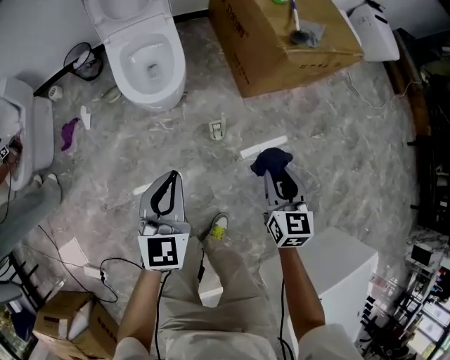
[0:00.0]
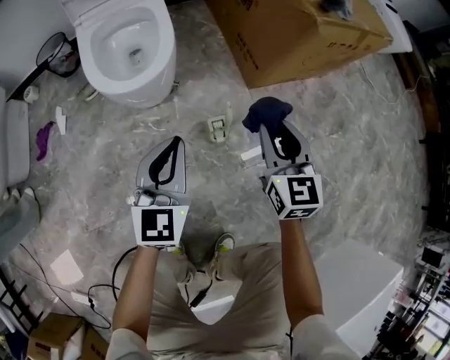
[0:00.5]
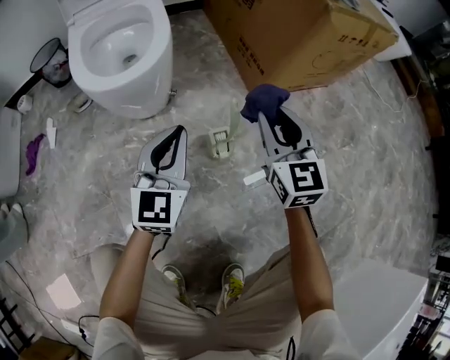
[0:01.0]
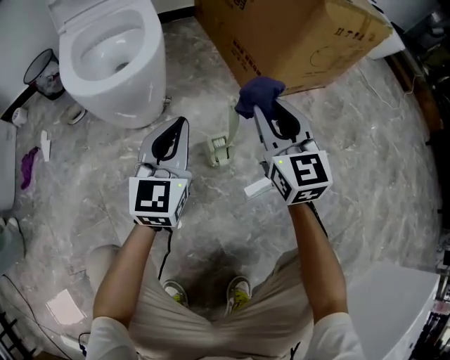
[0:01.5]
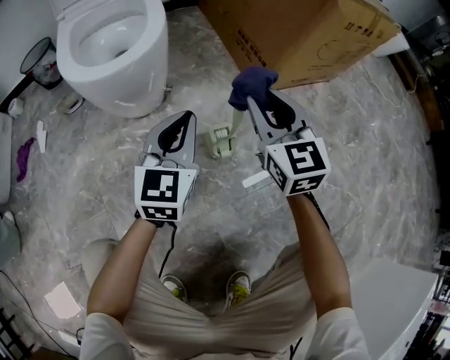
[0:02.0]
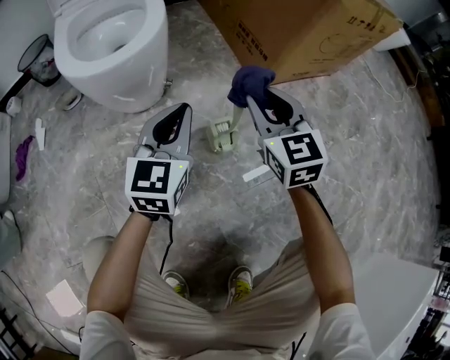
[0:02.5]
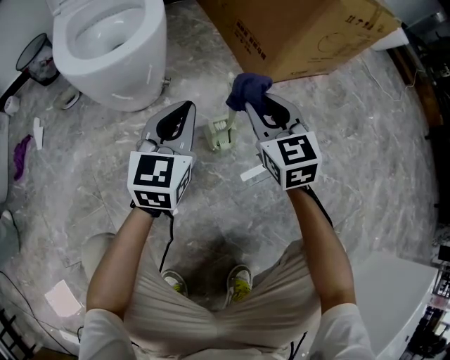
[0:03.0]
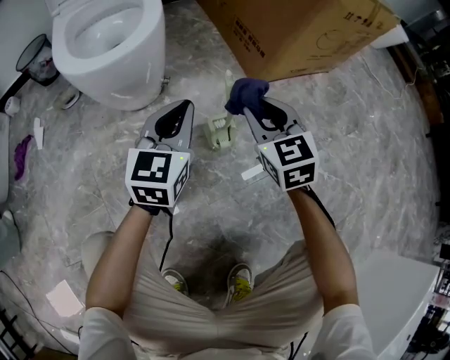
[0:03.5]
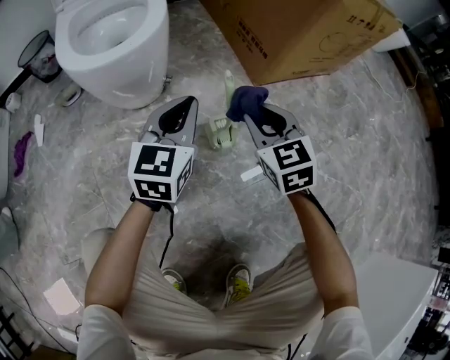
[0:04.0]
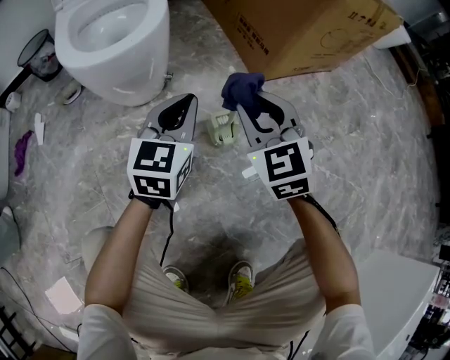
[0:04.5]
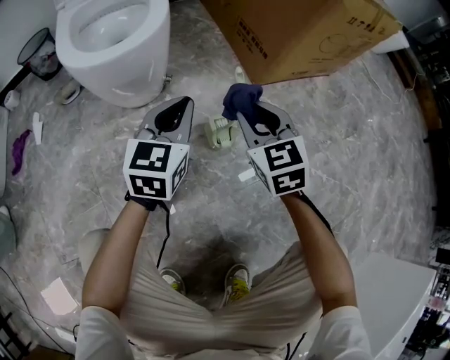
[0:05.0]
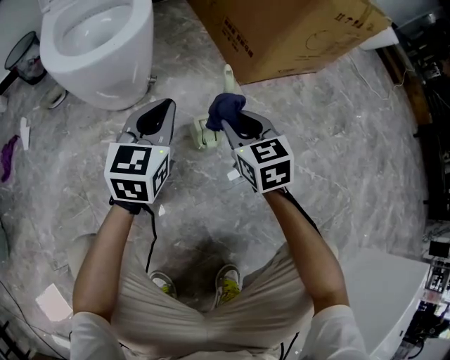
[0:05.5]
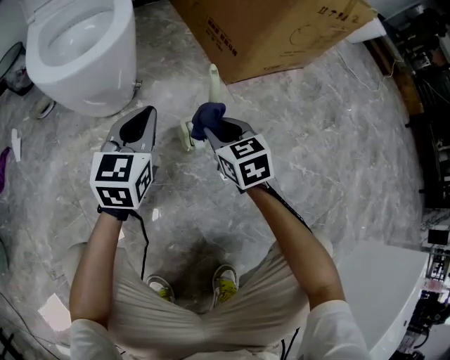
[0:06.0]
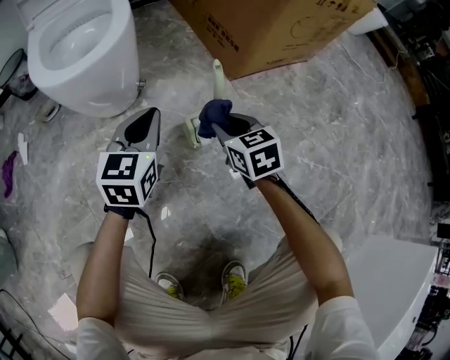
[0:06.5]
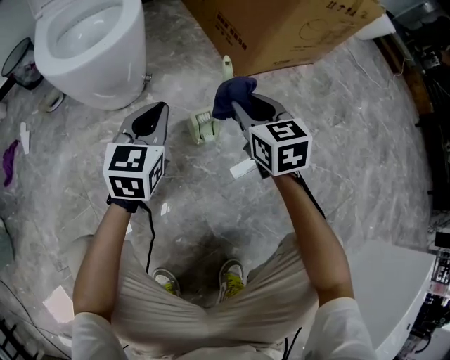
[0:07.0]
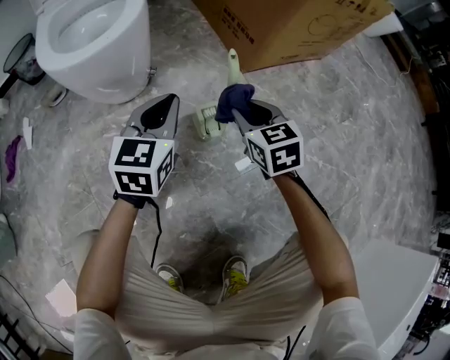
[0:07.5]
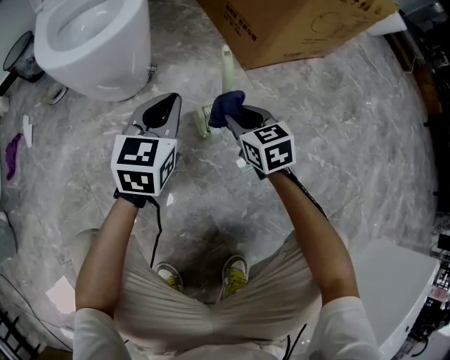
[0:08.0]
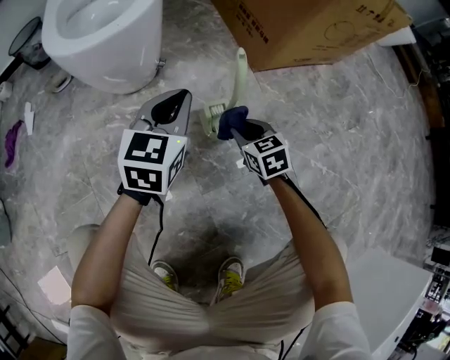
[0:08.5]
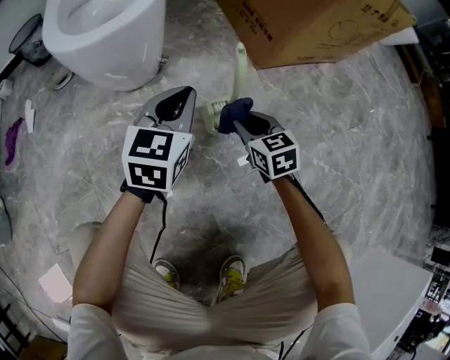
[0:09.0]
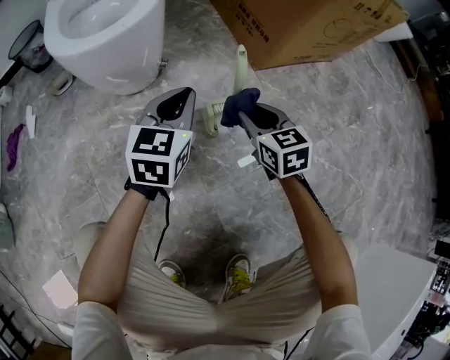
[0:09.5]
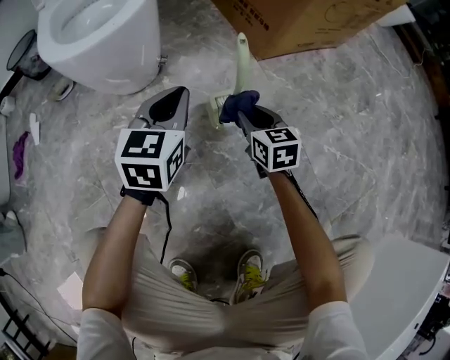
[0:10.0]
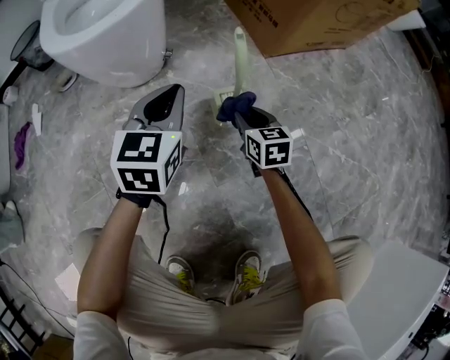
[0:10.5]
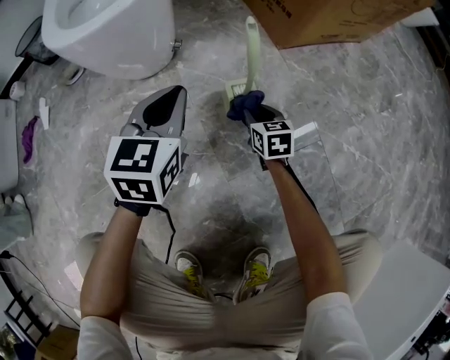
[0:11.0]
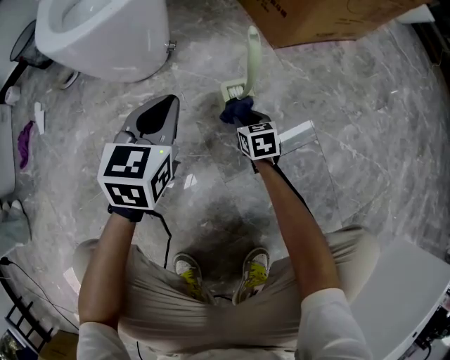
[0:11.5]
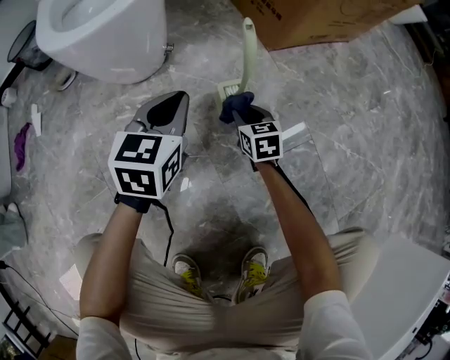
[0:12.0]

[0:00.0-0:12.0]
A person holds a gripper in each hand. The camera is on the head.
0:00.0 to 0:02.0: The right gripper shifts some 35 cm downward and forward, and changes its angle by roughly 20 degrees. Meanwhile the left gripper shifts about 40 cm downward.
0:02.0 to 0:04.0: The right gripper moves downward, some 10 cm.
0:04.0 to 0:06.0: The right gripper moves downward, about 5 cm.
0:06.0 to 0:08.0: The right gripper goes upward and returns, about 5 cm each way.
0:08.0 to 0:10.0: The right gripper moves up and down over about 10 cm, changing direction 2 times.
0:10.0 to 0:12.0: The right gripper moves downward, roughly 10 cm.

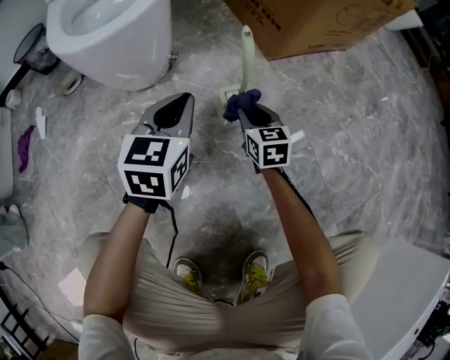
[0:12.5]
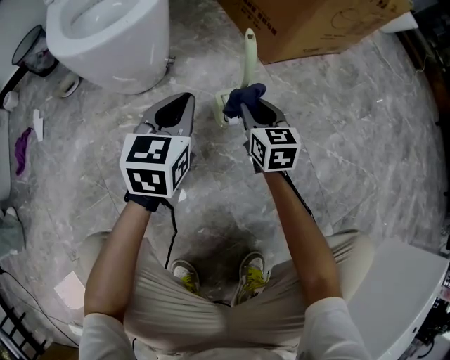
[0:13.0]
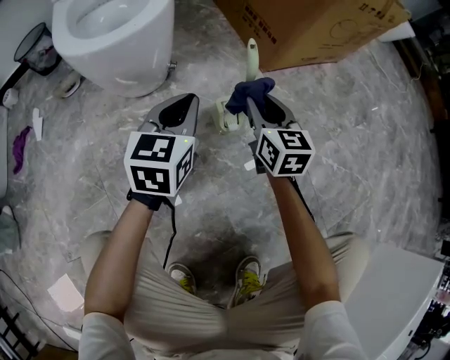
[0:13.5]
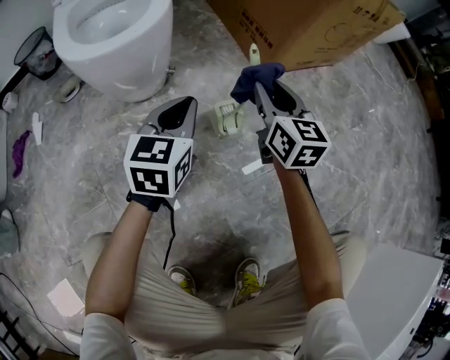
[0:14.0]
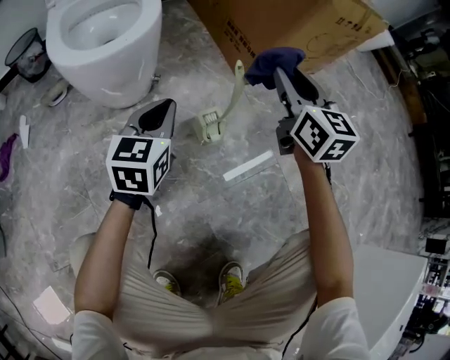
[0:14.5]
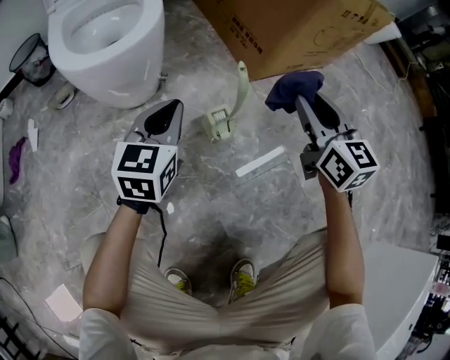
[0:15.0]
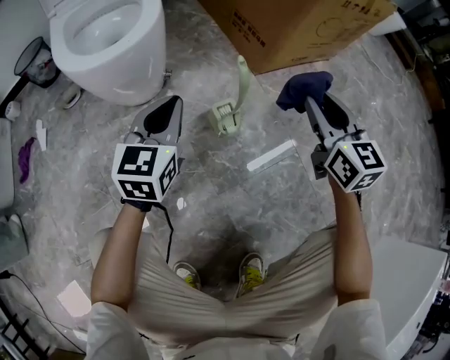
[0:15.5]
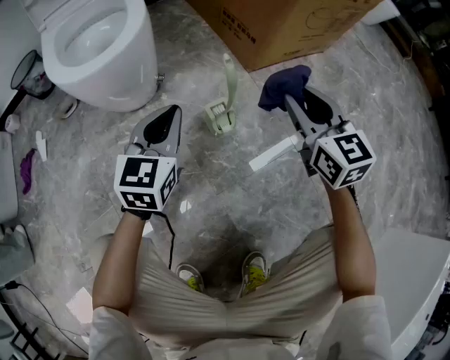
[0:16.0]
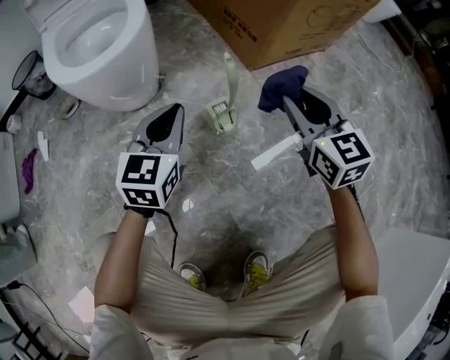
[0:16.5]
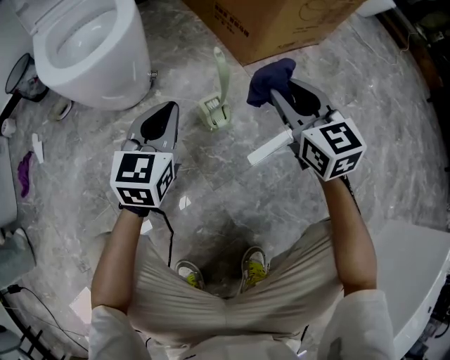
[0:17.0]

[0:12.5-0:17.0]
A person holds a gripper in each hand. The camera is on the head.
0:12.5 to 0:14.5: The right gripper travels upward by roughly 30 cm, and swivels about 20 degrees.
0:14.5 to 0:17.0: The right gripper travels backward by approximately 5 cm.

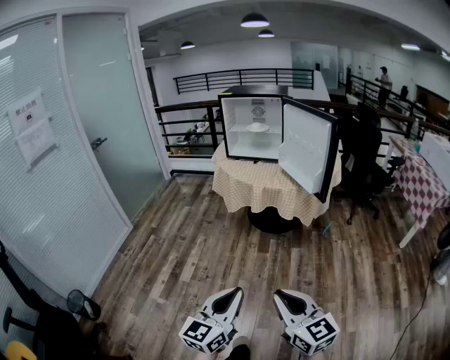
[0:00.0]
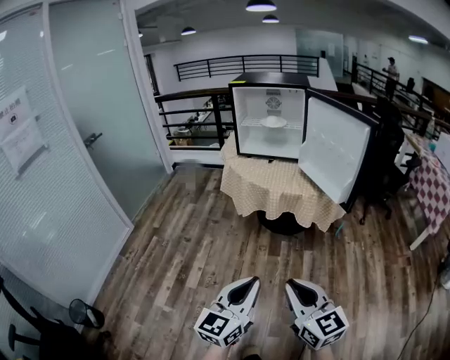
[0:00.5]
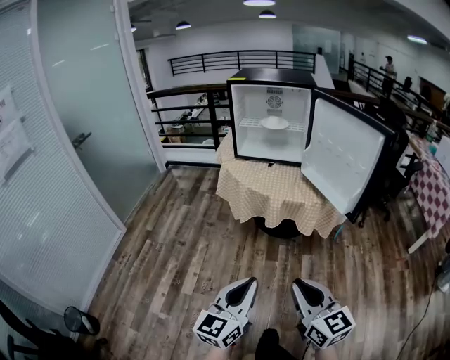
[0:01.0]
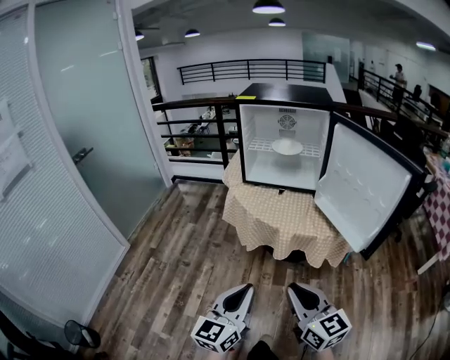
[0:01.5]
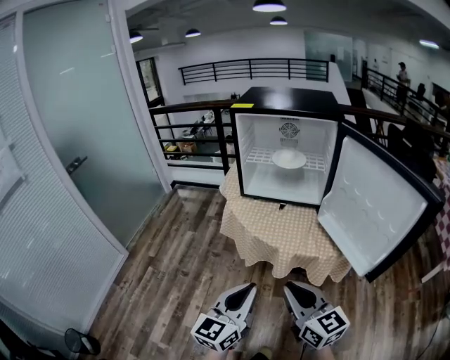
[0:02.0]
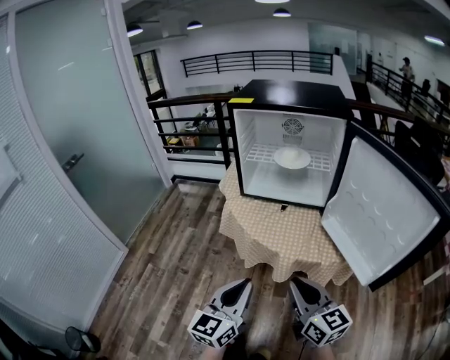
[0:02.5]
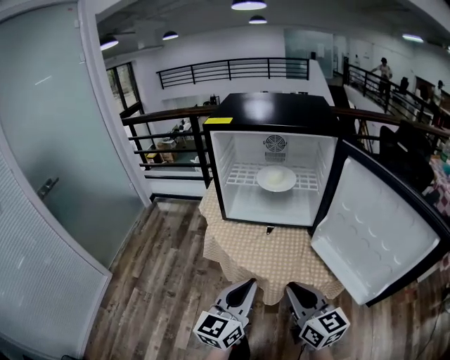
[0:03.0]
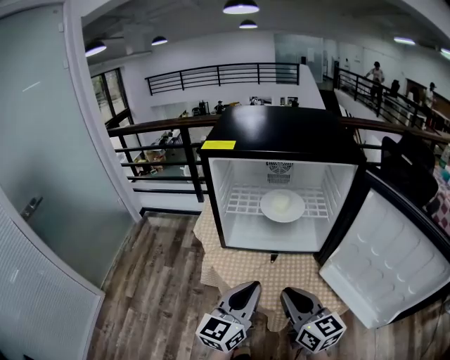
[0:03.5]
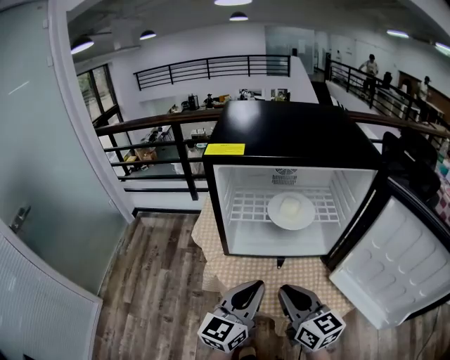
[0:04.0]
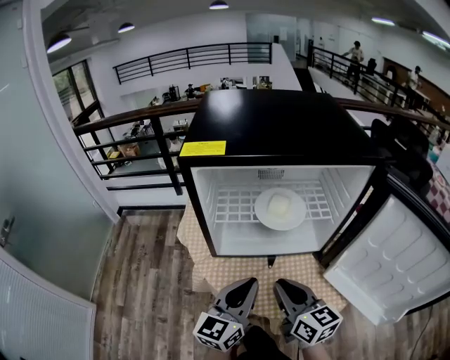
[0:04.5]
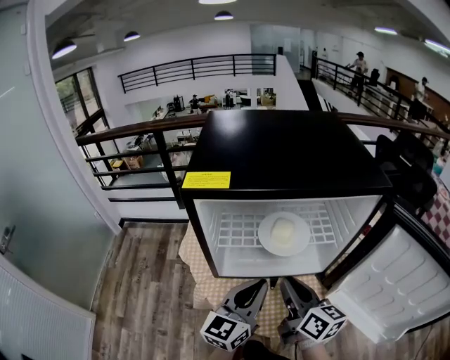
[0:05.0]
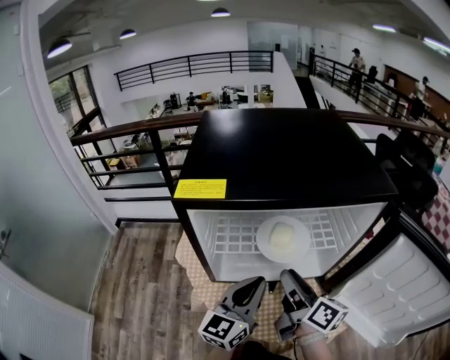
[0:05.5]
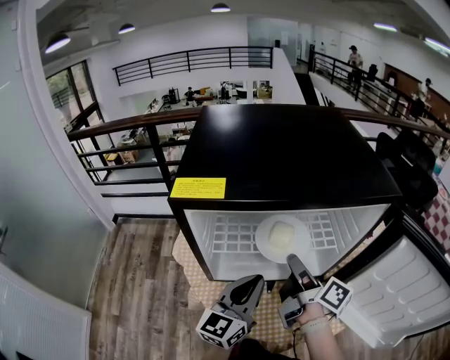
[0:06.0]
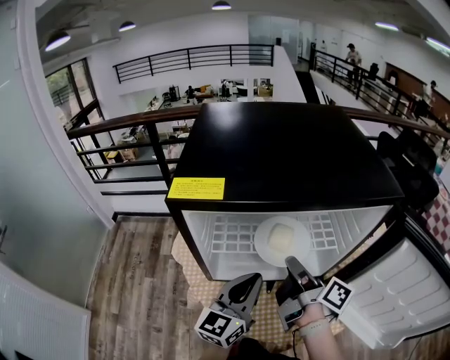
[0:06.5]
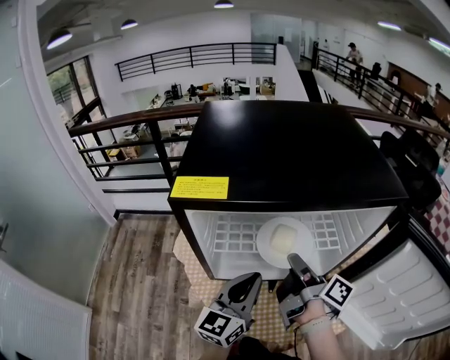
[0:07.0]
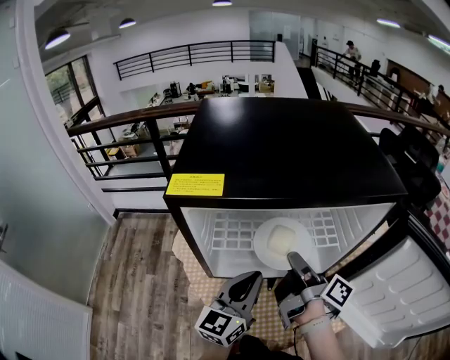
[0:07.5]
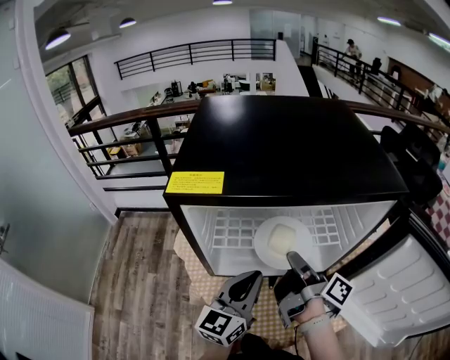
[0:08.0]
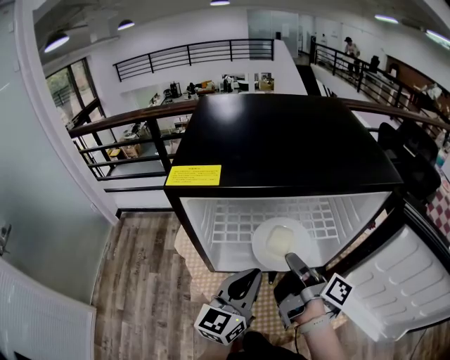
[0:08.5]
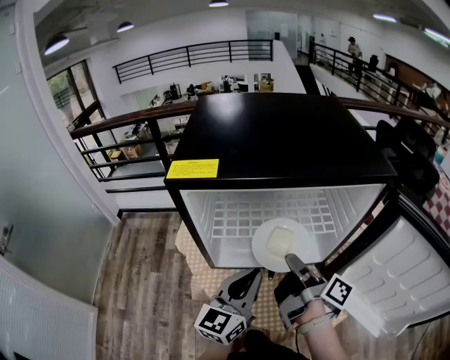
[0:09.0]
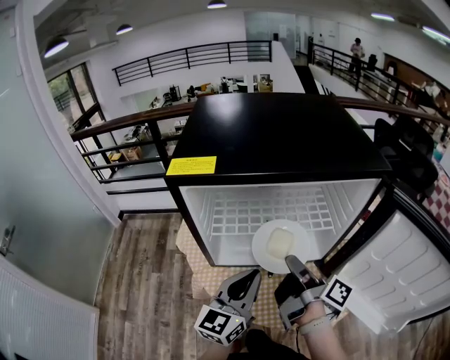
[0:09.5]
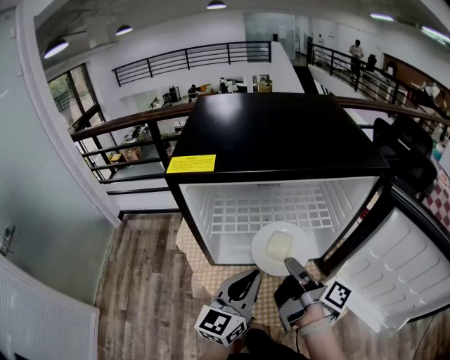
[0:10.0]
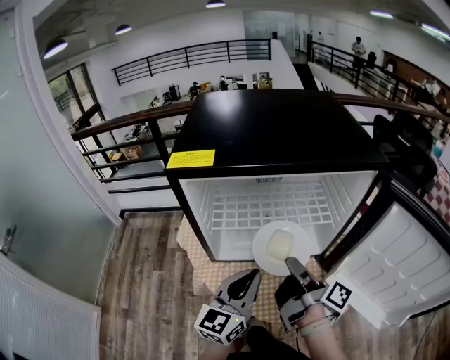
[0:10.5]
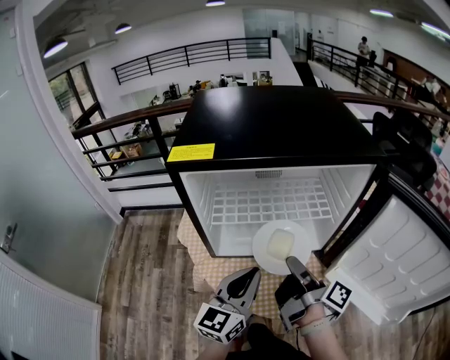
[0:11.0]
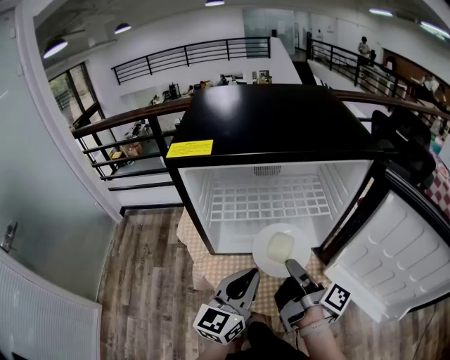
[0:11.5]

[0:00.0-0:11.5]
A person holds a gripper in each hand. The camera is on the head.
0:00.0 to 0:02.0: Both grippers are carried forward, roughly 50 cm.
0:02.0 to 0:04.0: Both grippers travel together forward, roughly 30 cm.
0:04.0 to 0:06.0: The right gripper travels forward by about 20 cm, rolls clockwise, seen from behind, by approximately 60 degrees, and opens; the left gripper heads forward, covering roughly 10 cm.
0:06.0 to 0:07.5: The grippers make only small movements.
0:07.5 to 0:09.5: The right gripper travels backward by roughly 5 cm.
0:09.5 to 0:11.5: The right gripper goes about 5 cm backward; the left gripper moves approximately 5 cm.
